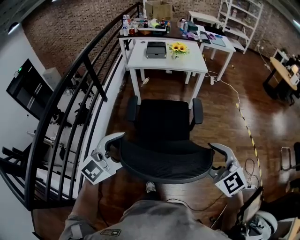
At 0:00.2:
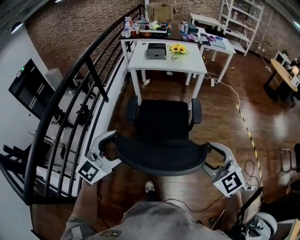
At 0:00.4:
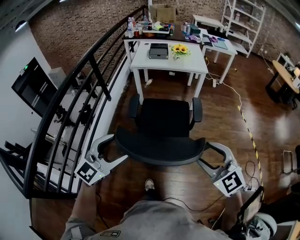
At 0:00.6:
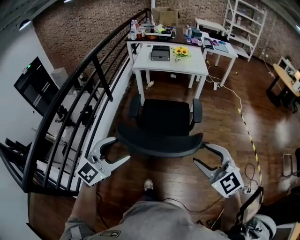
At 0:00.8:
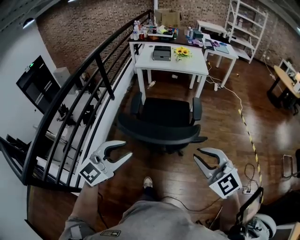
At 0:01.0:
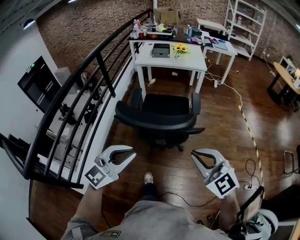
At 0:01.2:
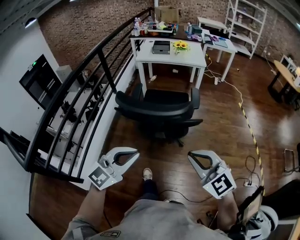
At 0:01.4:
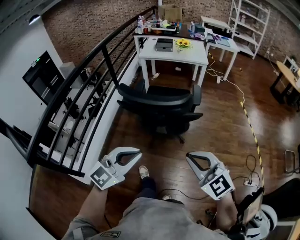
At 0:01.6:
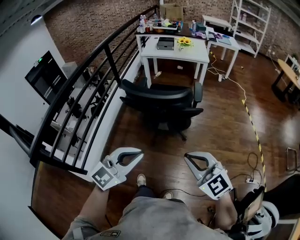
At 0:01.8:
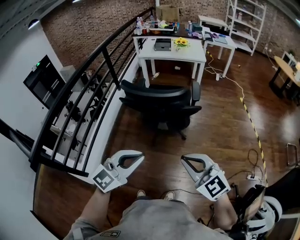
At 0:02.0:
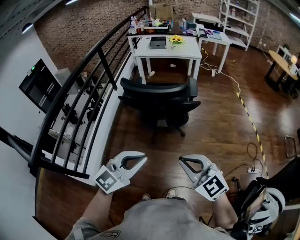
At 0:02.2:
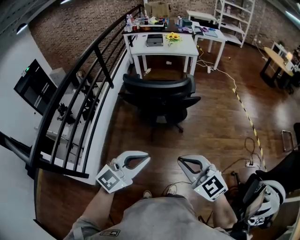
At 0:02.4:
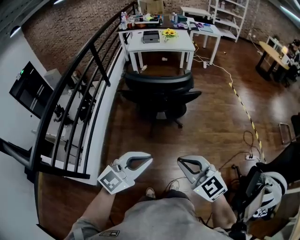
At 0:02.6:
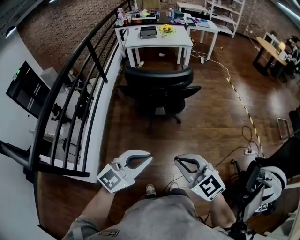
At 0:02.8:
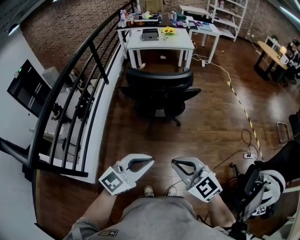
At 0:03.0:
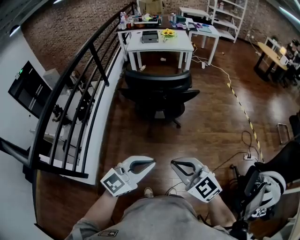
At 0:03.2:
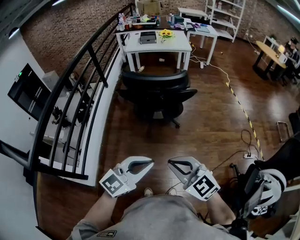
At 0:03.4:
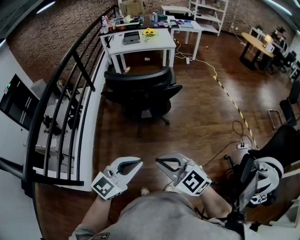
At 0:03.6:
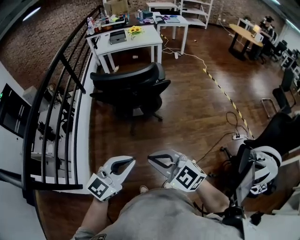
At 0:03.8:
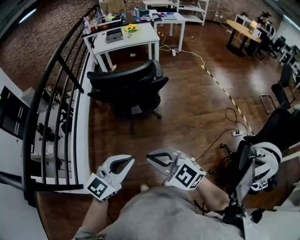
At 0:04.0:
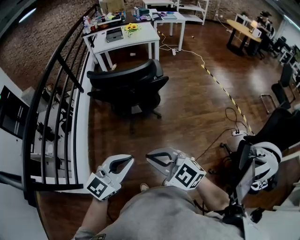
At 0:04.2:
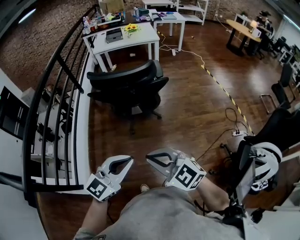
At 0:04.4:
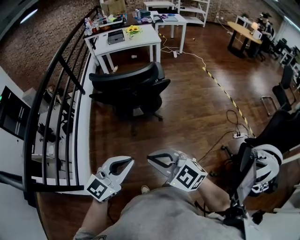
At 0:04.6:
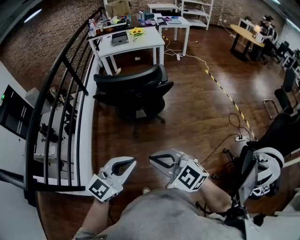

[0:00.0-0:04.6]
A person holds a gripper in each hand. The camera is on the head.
0:00.0 to 0:01.6: The grippers both shift backward by about 30 cm. The right gripper closes. The left gripper closes.
0:01.6 to 0:03.0: The left gripper is displaced backward by about 10 cm, while the right gripper moves backward and to the left, approximately 15 cm.
0:03.0 to 0:04.6: The grippers move only a little.

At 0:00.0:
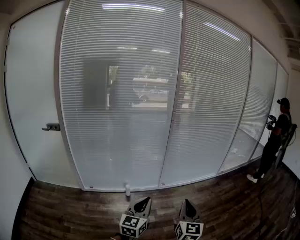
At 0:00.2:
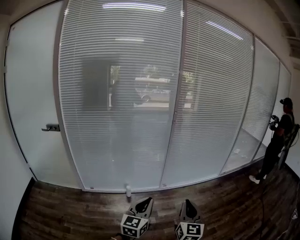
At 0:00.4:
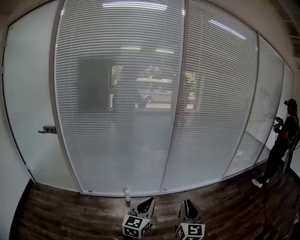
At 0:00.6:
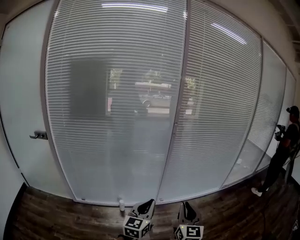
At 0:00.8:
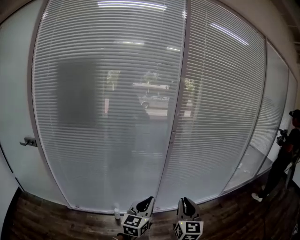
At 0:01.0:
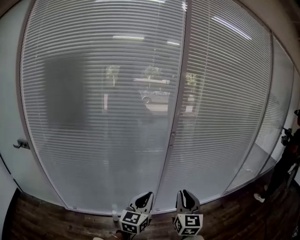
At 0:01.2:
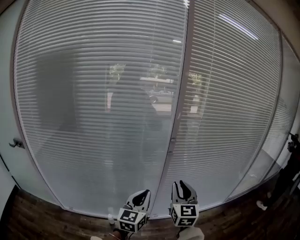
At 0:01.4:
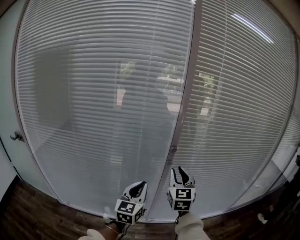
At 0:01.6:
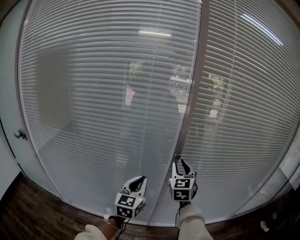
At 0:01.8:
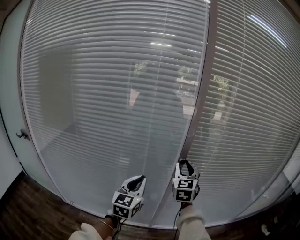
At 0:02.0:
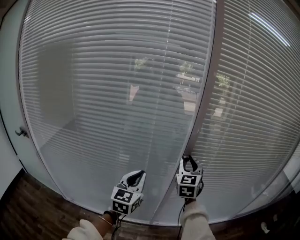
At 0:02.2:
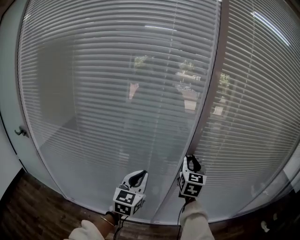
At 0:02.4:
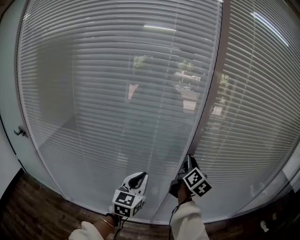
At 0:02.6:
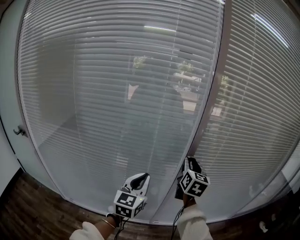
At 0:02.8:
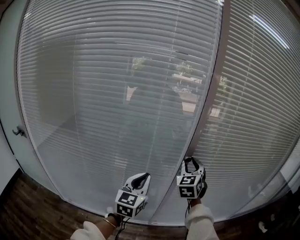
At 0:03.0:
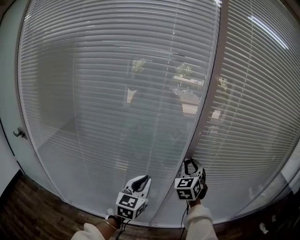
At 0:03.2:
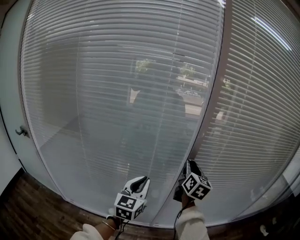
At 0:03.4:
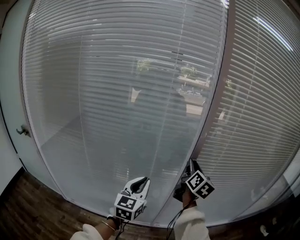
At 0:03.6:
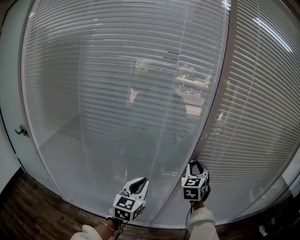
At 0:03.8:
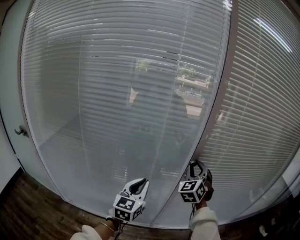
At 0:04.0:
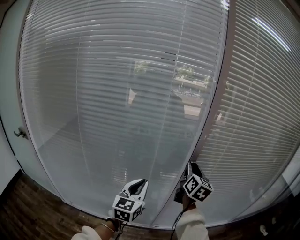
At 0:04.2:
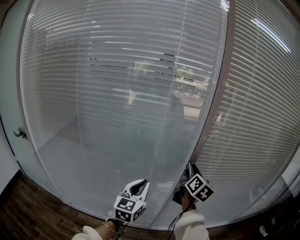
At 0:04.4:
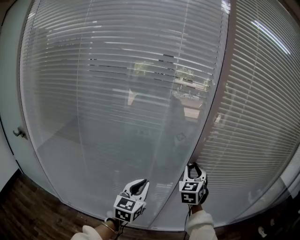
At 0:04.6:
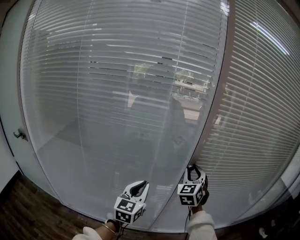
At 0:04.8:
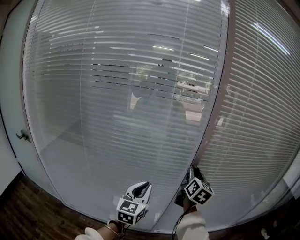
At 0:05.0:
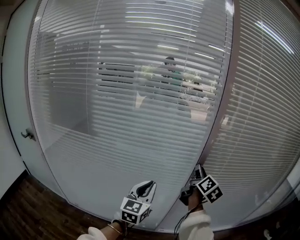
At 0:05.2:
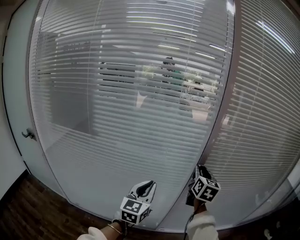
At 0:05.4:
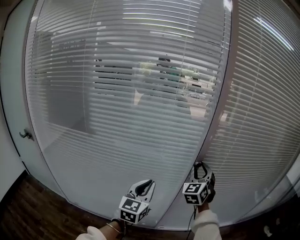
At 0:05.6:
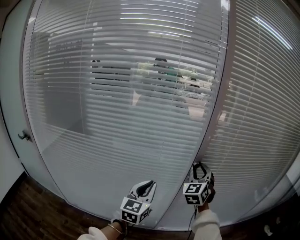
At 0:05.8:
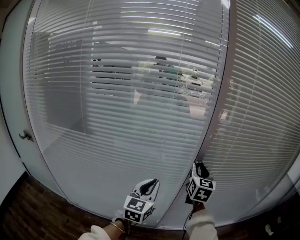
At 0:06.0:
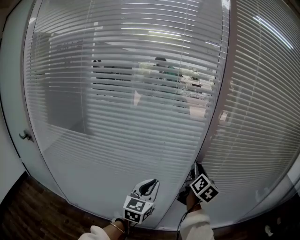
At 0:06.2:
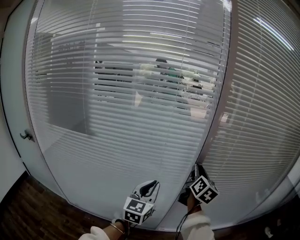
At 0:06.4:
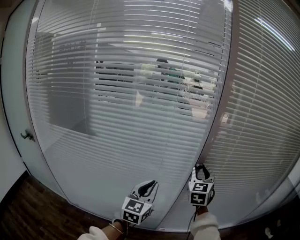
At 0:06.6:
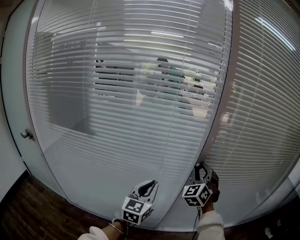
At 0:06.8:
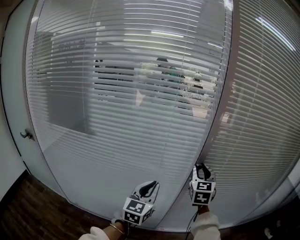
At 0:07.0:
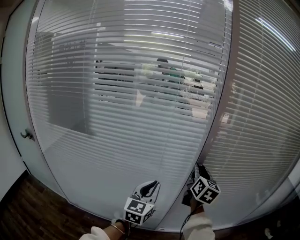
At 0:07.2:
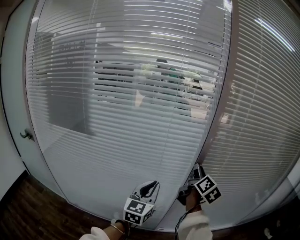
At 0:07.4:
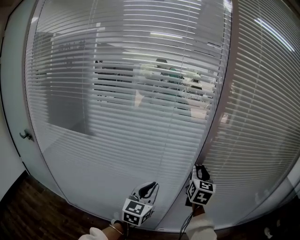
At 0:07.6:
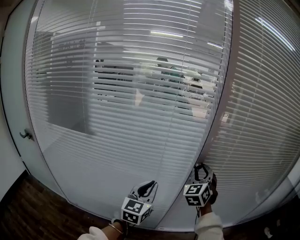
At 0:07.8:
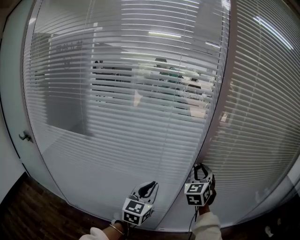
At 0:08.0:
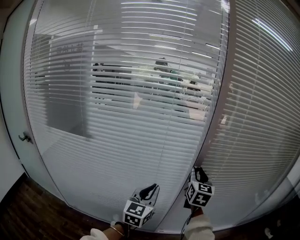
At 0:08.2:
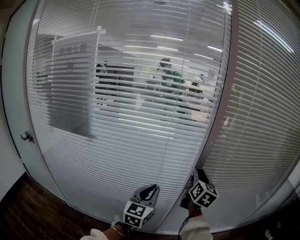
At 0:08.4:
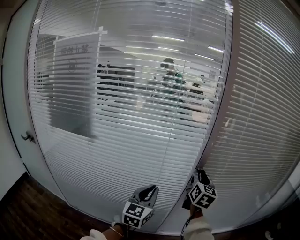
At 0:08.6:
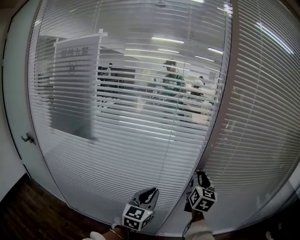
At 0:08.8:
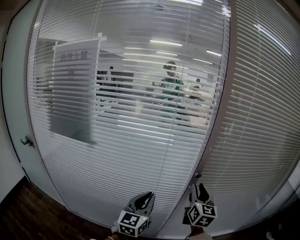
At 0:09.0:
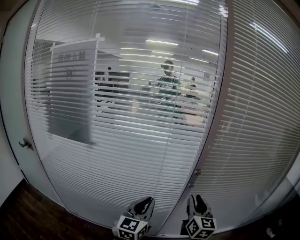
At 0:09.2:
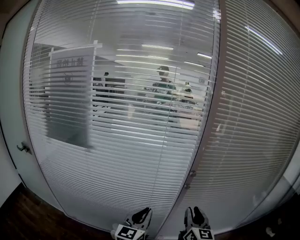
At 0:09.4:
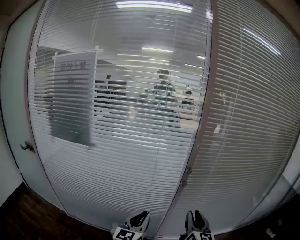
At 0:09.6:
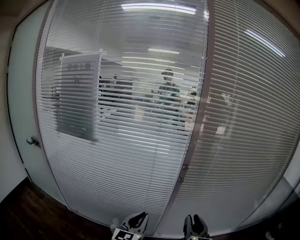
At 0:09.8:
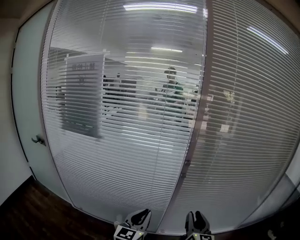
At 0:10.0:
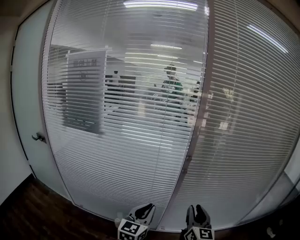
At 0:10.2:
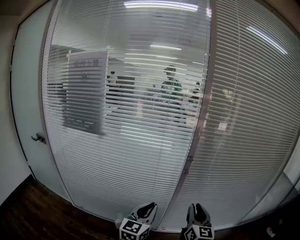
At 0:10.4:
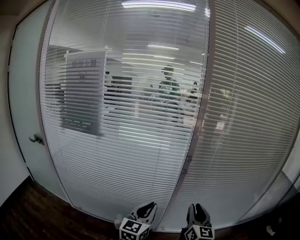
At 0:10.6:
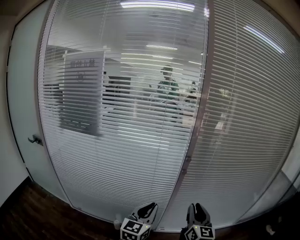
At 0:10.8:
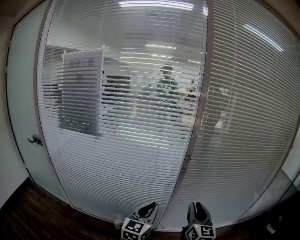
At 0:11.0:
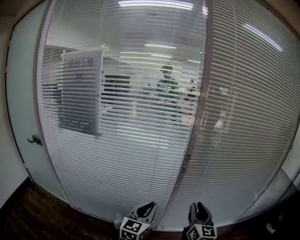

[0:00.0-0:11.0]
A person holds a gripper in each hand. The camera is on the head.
0:00.0 to 0:01.6: The two grippers travel together, forward, some 80 cm. The right gripper swivels approximately 20 degrees, and opens up.
0:01.6 to 0:03.2: The right gripper rotates approximately 40 degrees.
0:06.2 to 0:07.8: The right gripper twists some 60 degrees counterclockwise, seen from behind.
0:07.8 to 0:09.4: The right gripper moves backward, roughly 15 cm, and rolls clockwise, seen from behind, by some 50 degrees. The left gripper heads backward, covering about 10 cm.
0:09.4 to 0:11.0: Both grippers travel together backward, roughly 5 cm.

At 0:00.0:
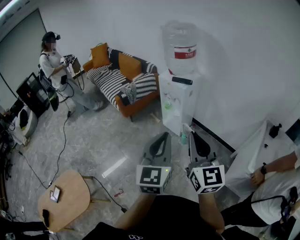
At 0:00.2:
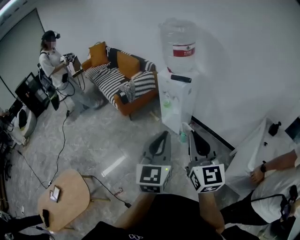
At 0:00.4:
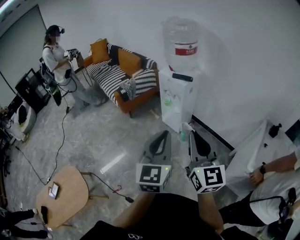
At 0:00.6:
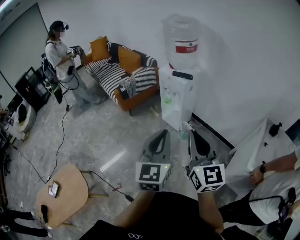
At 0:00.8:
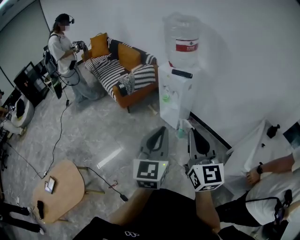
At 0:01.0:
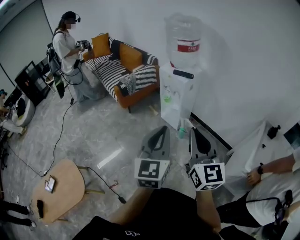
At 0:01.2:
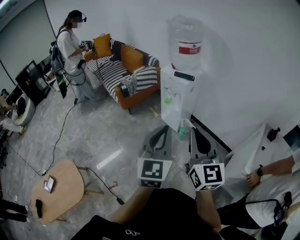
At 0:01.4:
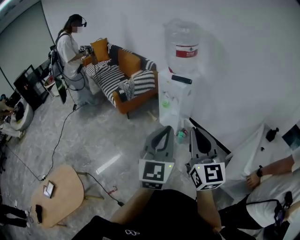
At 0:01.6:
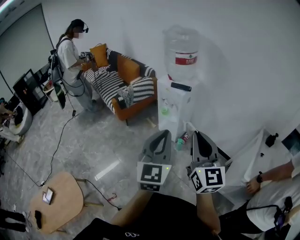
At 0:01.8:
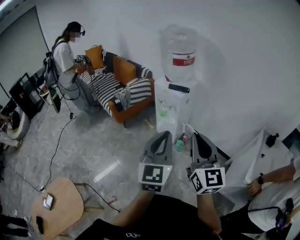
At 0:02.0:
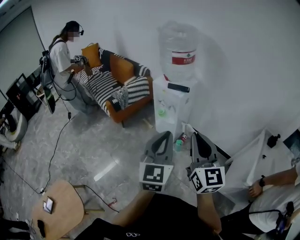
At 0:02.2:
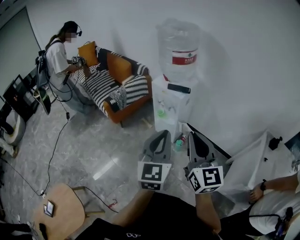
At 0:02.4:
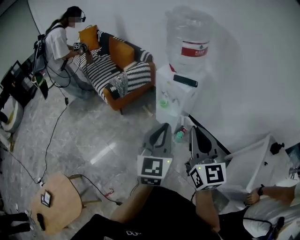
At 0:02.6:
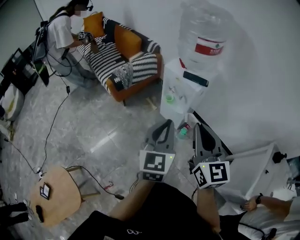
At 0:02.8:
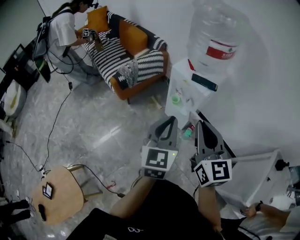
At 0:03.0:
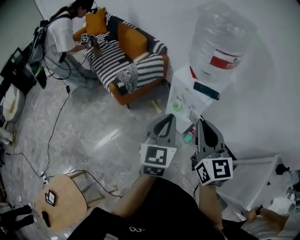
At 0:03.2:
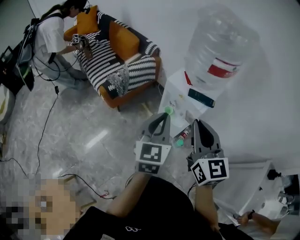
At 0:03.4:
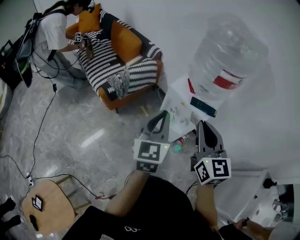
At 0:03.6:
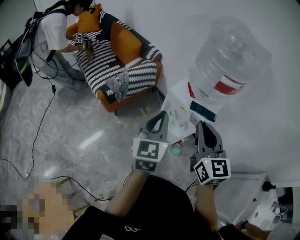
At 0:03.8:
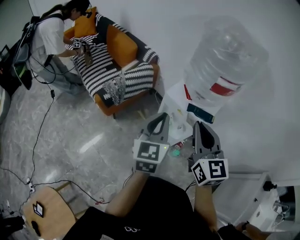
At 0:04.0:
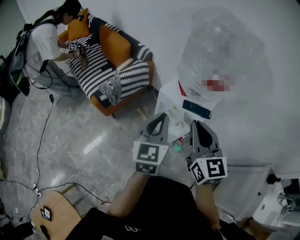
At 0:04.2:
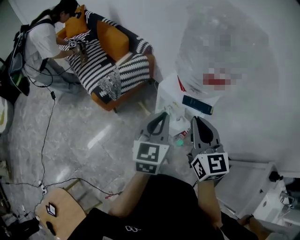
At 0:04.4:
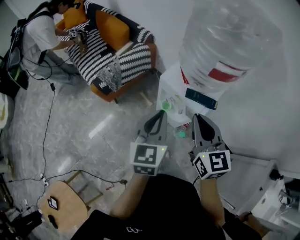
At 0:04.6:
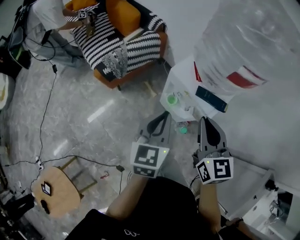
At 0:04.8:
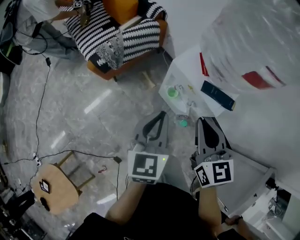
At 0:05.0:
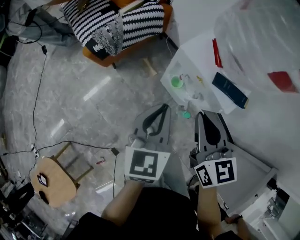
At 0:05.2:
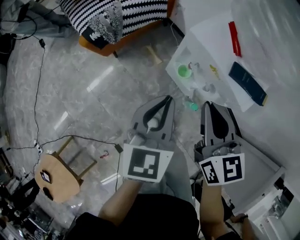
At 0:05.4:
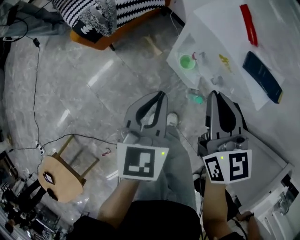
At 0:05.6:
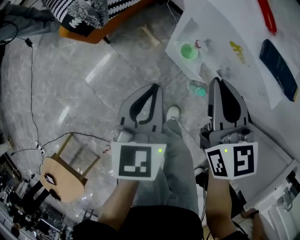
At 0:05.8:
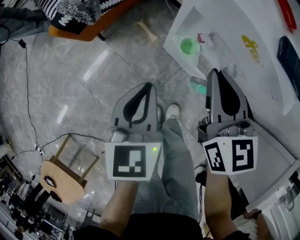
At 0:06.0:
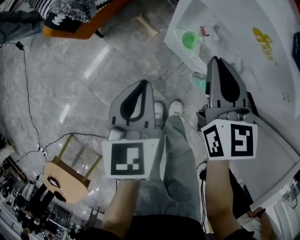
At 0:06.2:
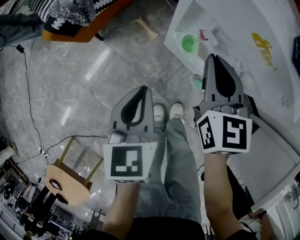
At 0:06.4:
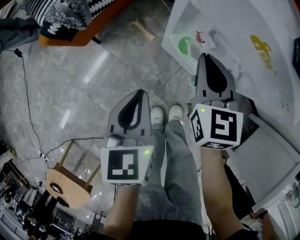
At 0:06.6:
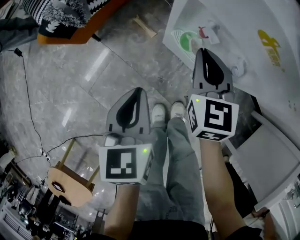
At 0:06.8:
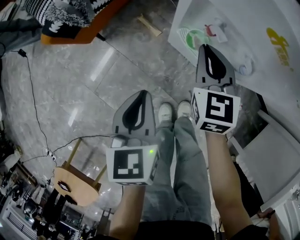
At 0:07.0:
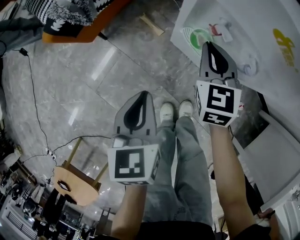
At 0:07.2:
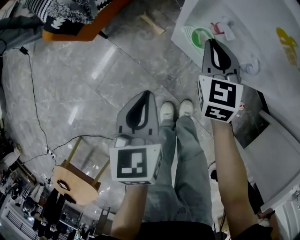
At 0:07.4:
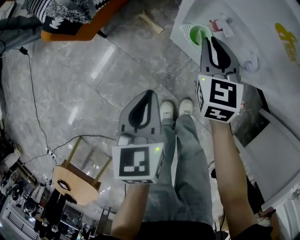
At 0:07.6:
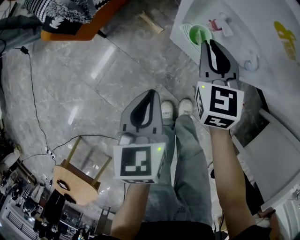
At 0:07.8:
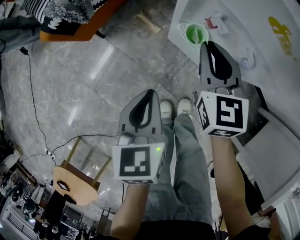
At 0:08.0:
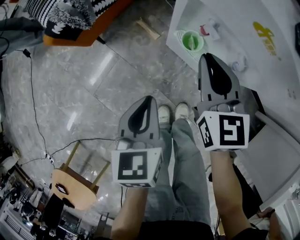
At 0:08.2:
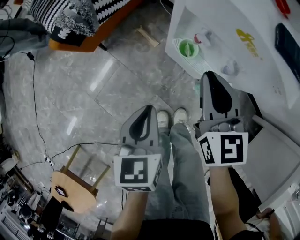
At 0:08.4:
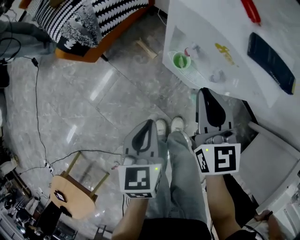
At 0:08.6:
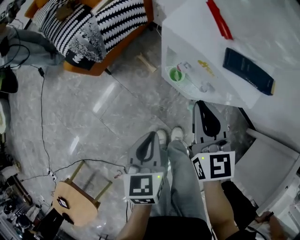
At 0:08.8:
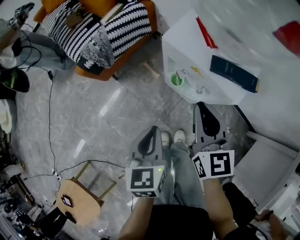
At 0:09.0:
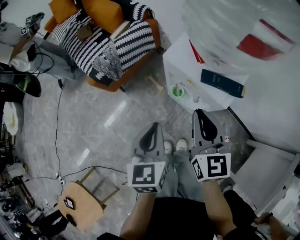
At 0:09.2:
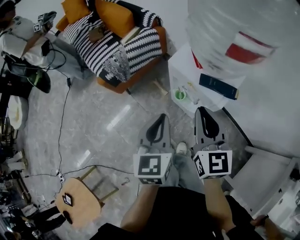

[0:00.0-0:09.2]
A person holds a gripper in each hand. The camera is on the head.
0:00.0 to 0:01.6: The grippers stay close to where they were, moving slightly.
0:01.6 to 0:03.0: The grippers both shift forward by roughly 35 cm.
0:03.0 to 0:04.6: Both grippers travel together forward and downward, about 20 cm.
0:04.6 to 0:06.2: Both grippers move downward, some 30 cm. The left gripper swivels about 20 degrees.
0:06.2 to 0:07.6: The right gripper moves downward, approximately 10 cm.
0:07.6 to 0:09.2: Both grippers move upward, about 30 cm. The right gripper turns by approximately 20 degrees, while the left gripper swivels about 20 degrees.
